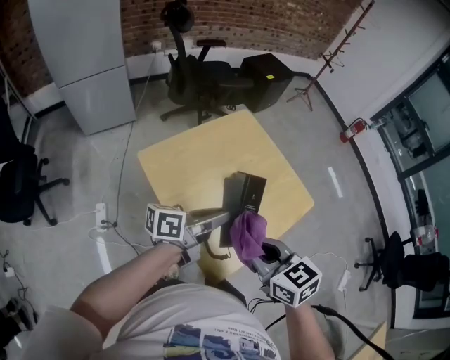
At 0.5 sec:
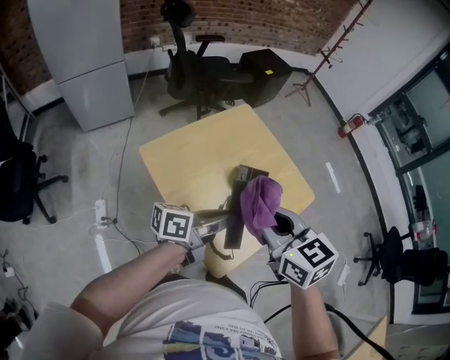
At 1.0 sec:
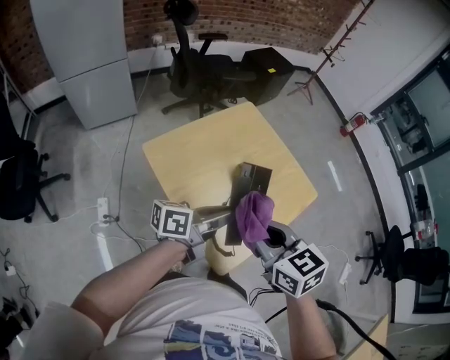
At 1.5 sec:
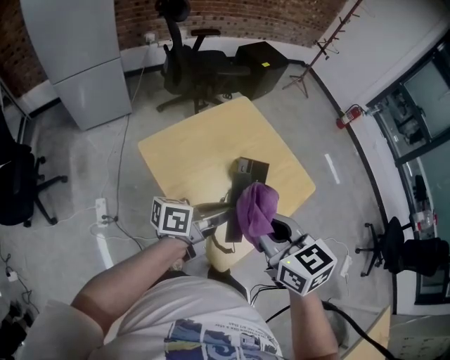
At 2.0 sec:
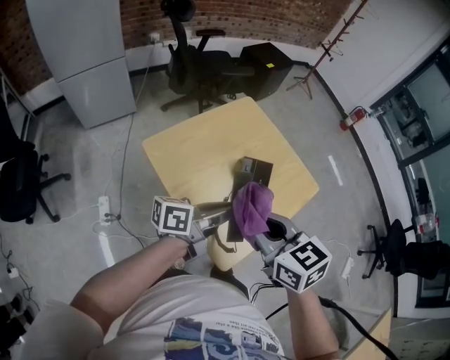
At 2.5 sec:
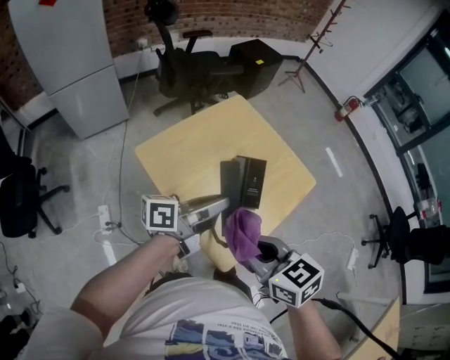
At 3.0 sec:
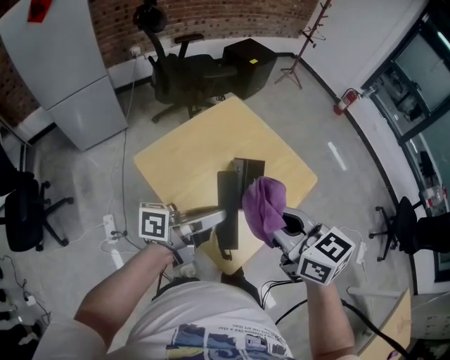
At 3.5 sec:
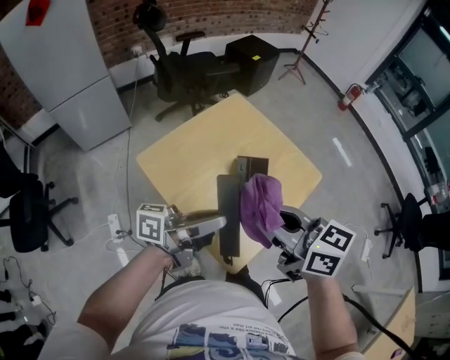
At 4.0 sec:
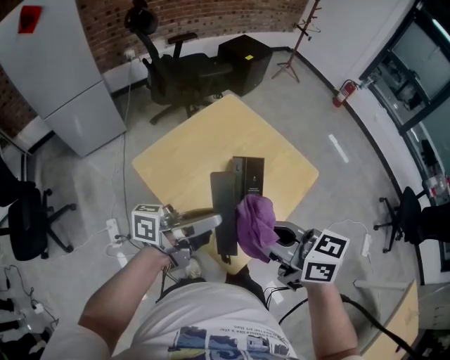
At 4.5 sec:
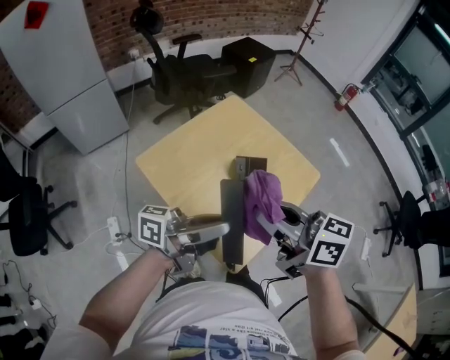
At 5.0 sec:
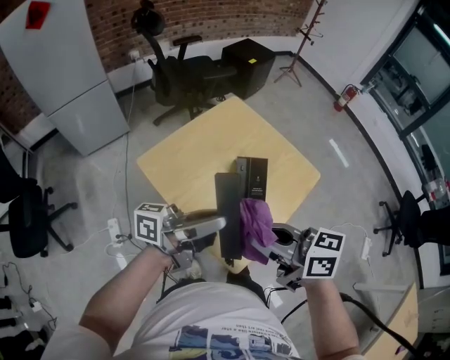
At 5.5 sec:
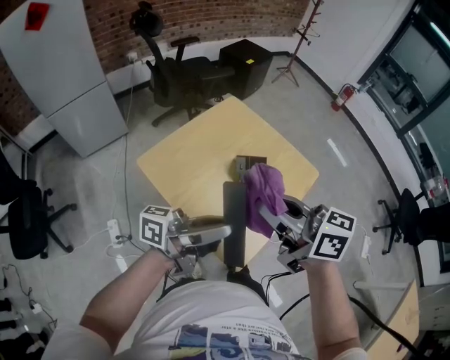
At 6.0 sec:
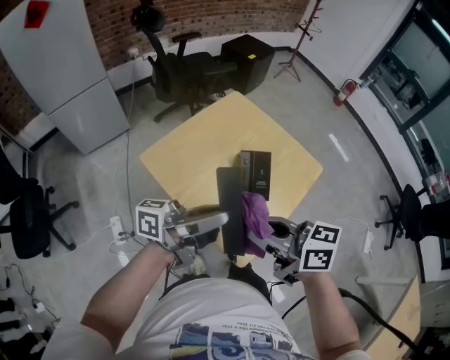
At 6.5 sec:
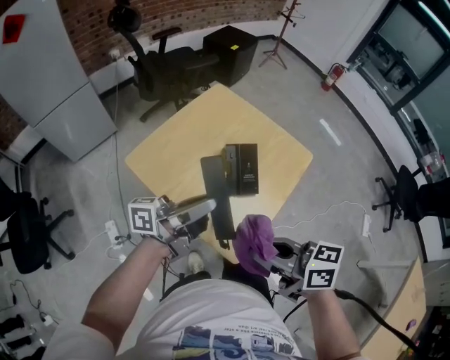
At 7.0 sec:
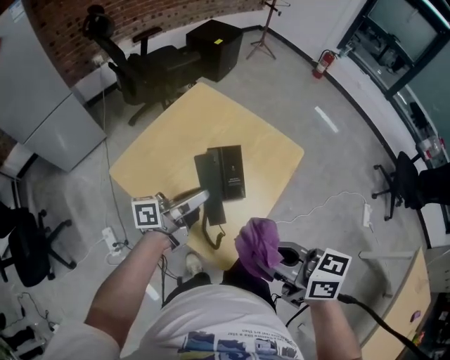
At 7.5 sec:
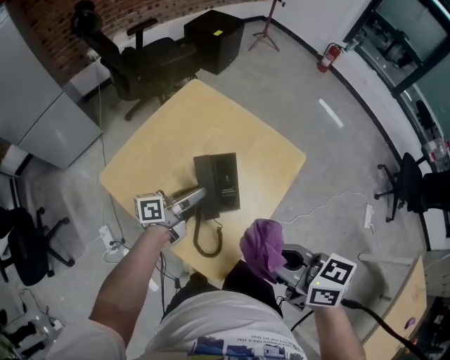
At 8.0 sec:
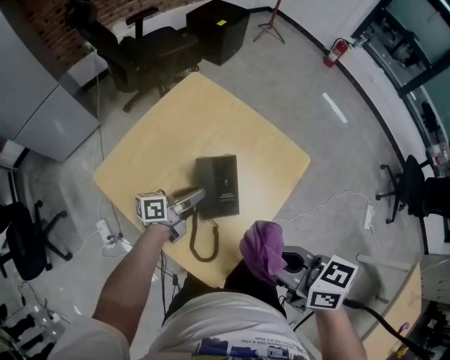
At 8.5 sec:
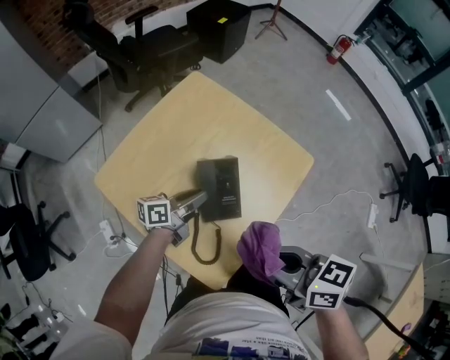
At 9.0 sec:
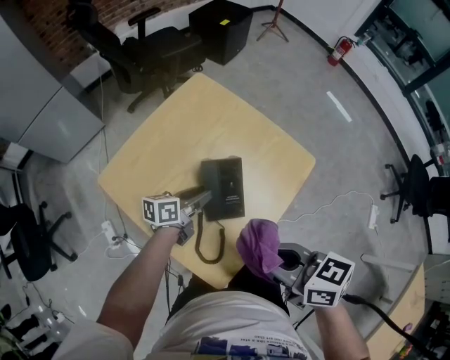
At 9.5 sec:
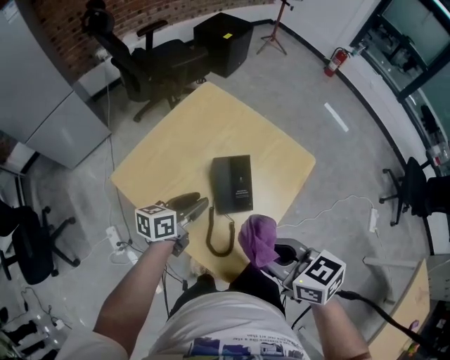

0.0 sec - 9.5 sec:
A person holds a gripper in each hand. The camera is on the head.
2.0 sec - 4.0 sec: The right gripper changes its angle by about 20 degrees. Meanwhile the left gripper travels upward by about 5 cm, and swivels about 20 degrees.
4.0 sec - 5.5 sec: The right gripper swings up and down, about 5 cm each way, with 2 reversals.
5.5 sec - 7.5 sec: The left gripper travels downward by approximately 20 cm, and changes its angle by about 30 degrees. The right gripper shifts by about 15 cm.
7.5 sec - 9.5 sec: The left gripper swivels approximately 20 degrees, while the right gripper changes place by about 5 cm.

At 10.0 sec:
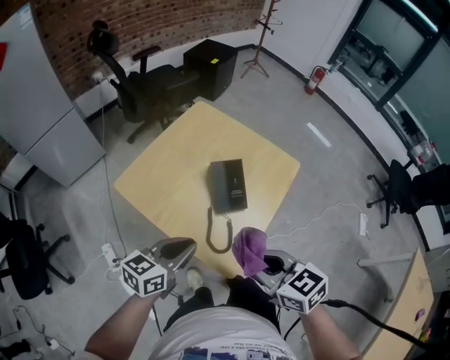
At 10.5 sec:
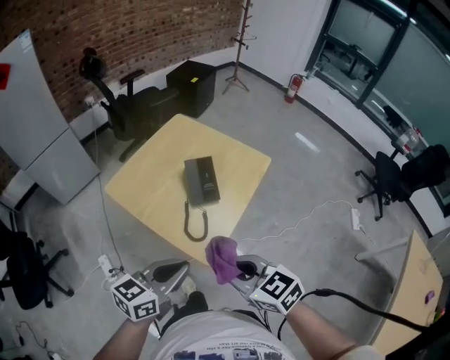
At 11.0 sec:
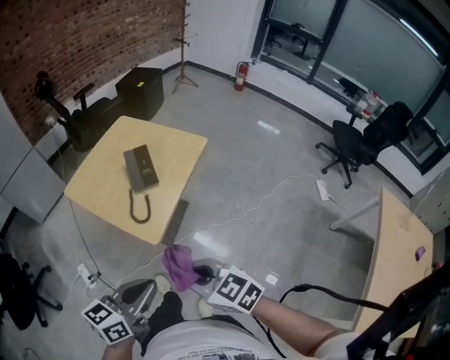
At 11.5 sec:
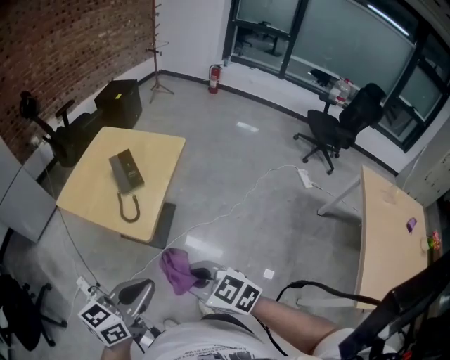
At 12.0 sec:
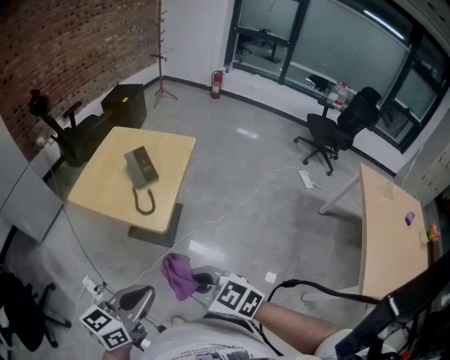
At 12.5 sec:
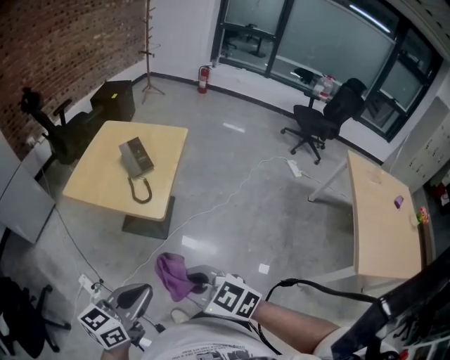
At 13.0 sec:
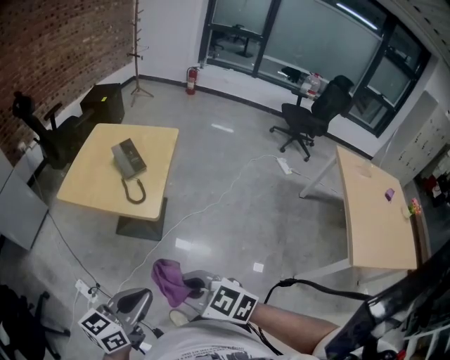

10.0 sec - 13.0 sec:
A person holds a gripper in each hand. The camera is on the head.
10.0 sec - 11.5 sec: The right gripper goes some 20 cm backward, while the left gripper is displaced backward and to the right by some 25 cm.
11.5 sec - 13.0 sec: Both grippers travel together to the left and backward, some 15 cm.

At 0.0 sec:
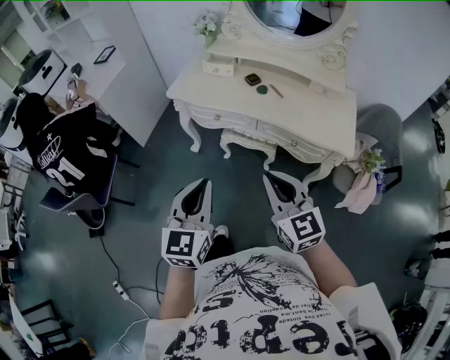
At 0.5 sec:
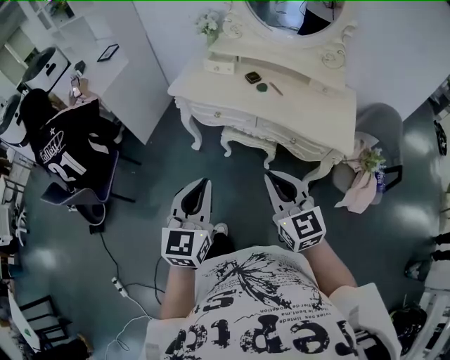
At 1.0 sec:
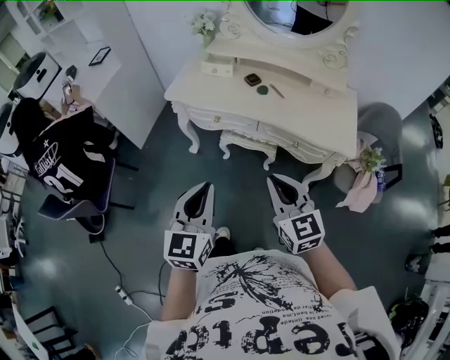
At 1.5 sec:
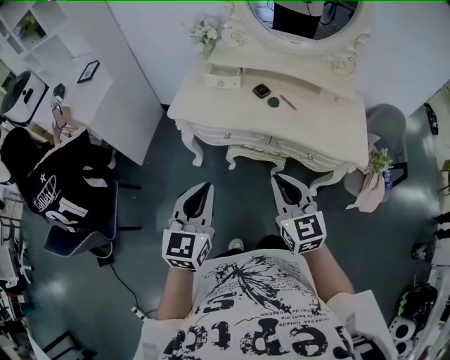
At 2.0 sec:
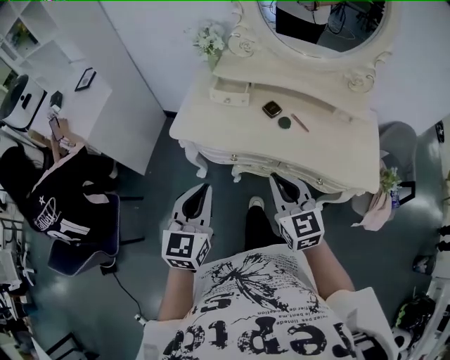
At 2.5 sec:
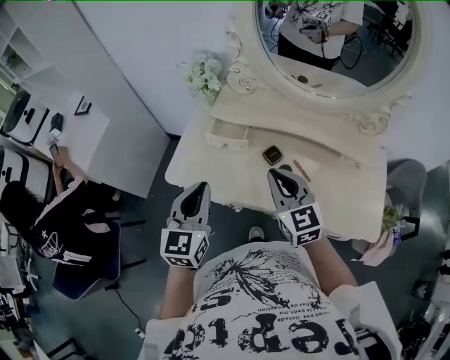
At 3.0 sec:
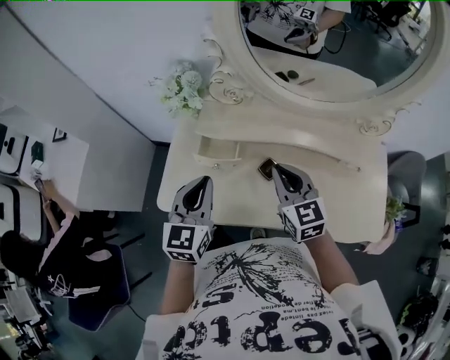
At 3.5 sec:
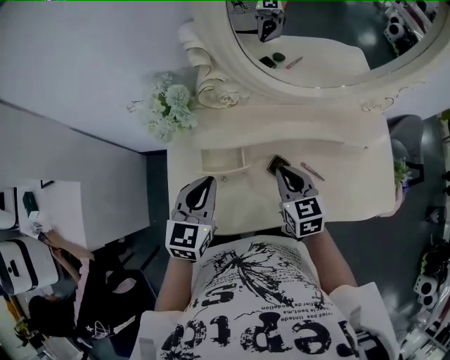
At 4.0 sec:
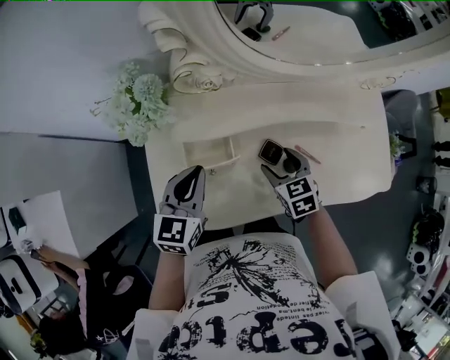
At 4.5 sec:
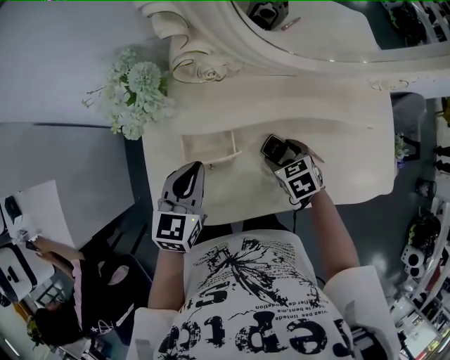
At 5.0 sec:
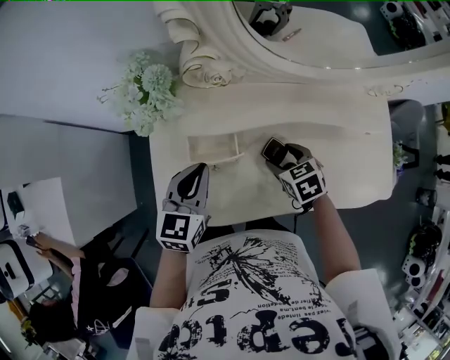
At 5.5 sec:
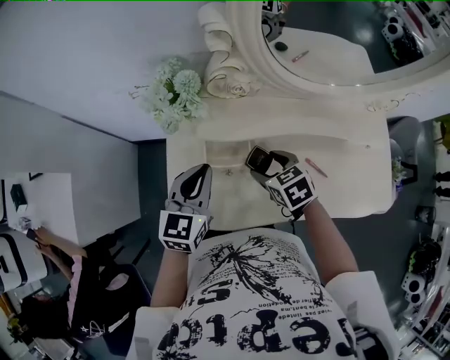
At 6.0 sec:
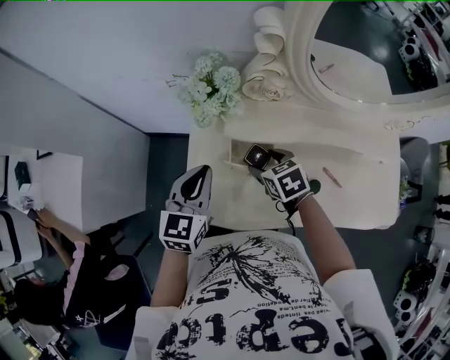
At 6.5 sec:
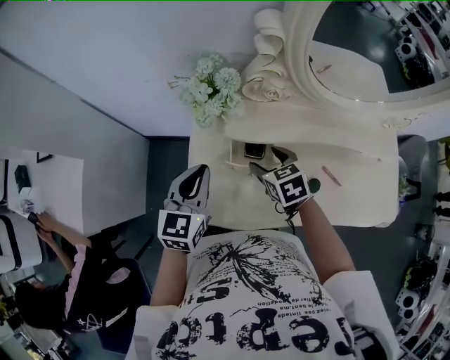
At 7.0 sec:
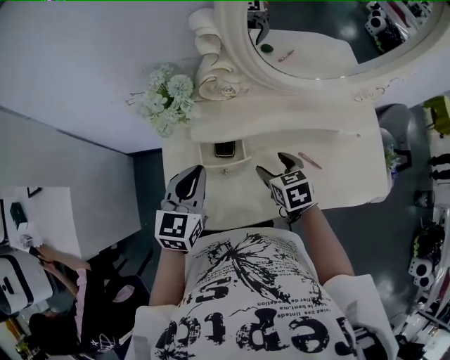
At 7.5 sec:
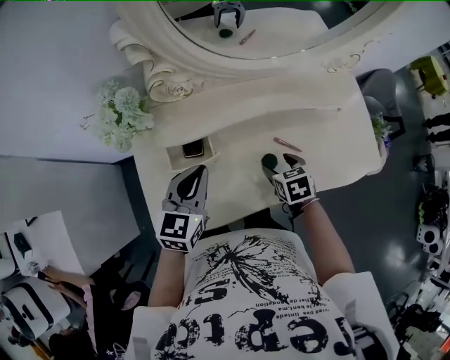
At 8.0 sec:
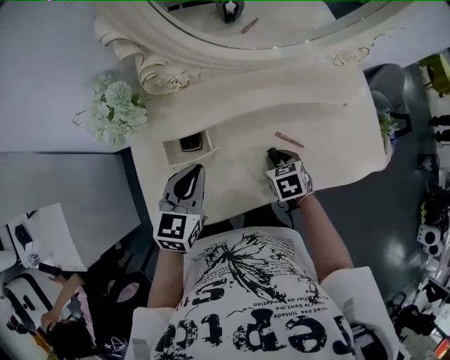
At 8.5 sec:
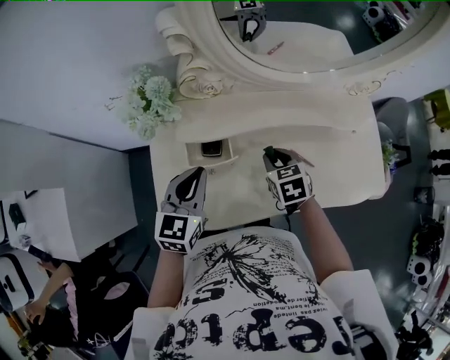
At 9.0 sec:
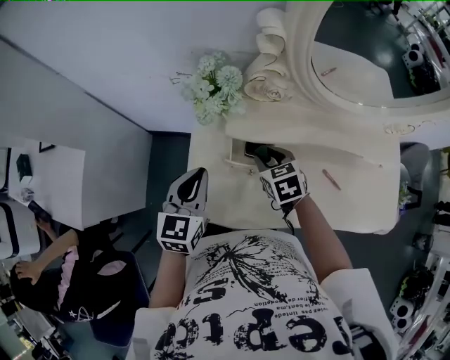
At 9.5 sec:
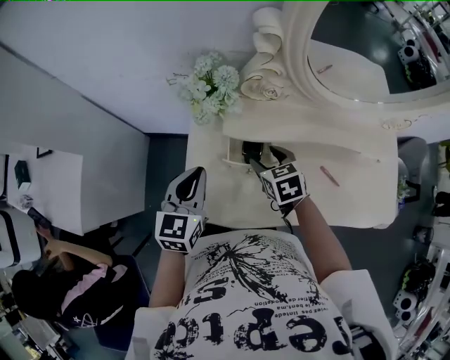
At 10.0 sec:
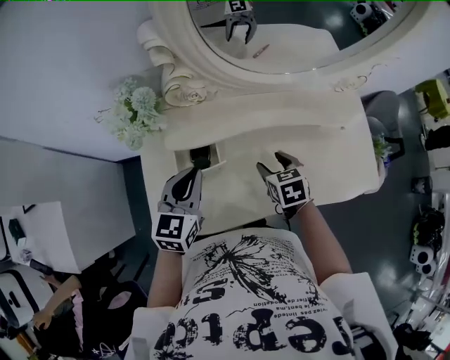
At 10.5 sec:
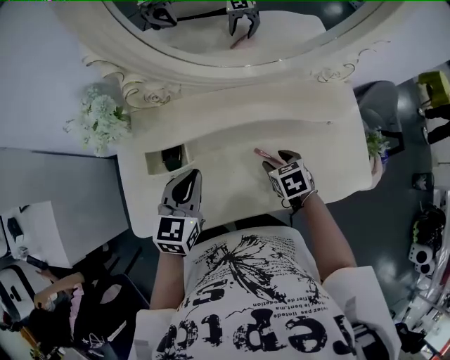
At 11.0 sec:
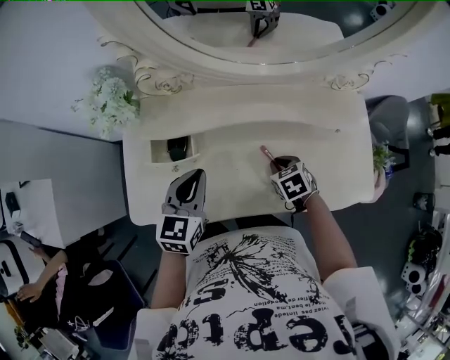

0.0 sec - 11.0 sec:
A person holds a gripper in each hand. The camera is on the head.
0.0 sec - 2.0 sec: The grippers both shift forward by approximately 25 cm.
2.0 sec - 3.5 sec: Both grippers move forward, about 35 cm. The left gripper changes its angle by roughly 20 degrees. Meanwhile the right gripper changes its angle by about 30 degrees.
3.5 sec - 5.5 sec: The right gripper heads to the left, covering about 5 cm, goes downward and returns, some 15 cm each way, swivels about 30 degrees, and opens its fingers.
5.5 sec - 7.5 sec: The left gripper changes place by about 10 cm. The right gripper changes place by roughly 15 cm, and rotates approximately 30 degrees.
7.5 sec - 9.0 sec: The two grippers go about 20 cm to the left. The left gripper turns by about 20 degrees, while the right gripper swivels about 30 degrees, and closes.
9.0 sec - 11.0 sec: Both grippers travel together to the right, approximately 25 cm. The right gripper opens, then closes again.

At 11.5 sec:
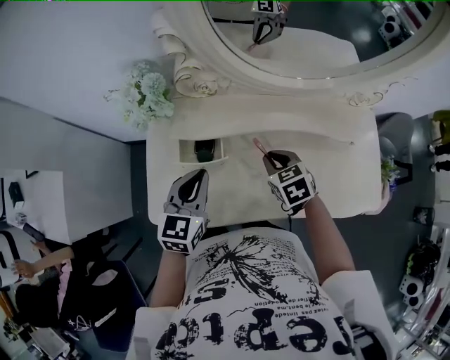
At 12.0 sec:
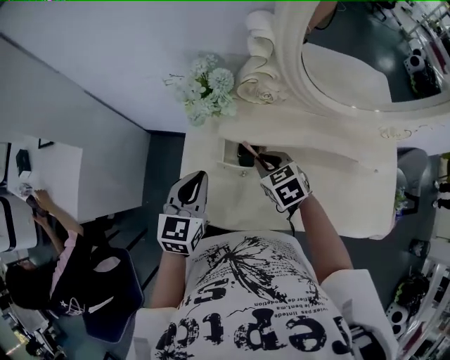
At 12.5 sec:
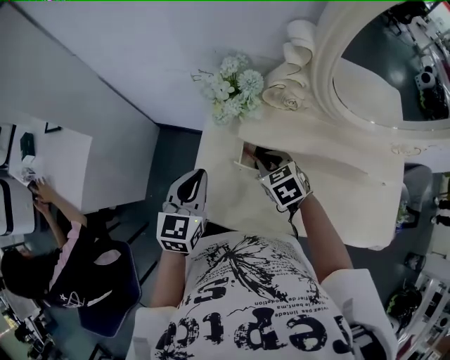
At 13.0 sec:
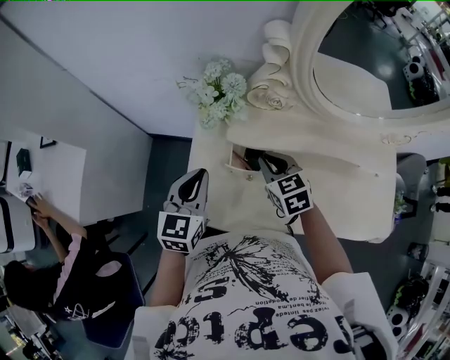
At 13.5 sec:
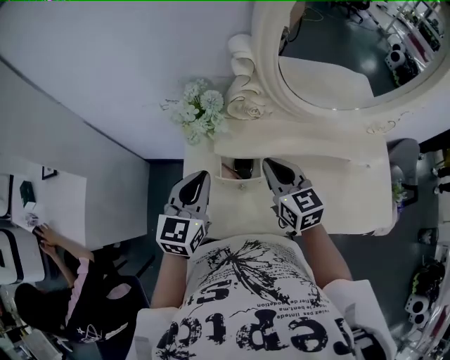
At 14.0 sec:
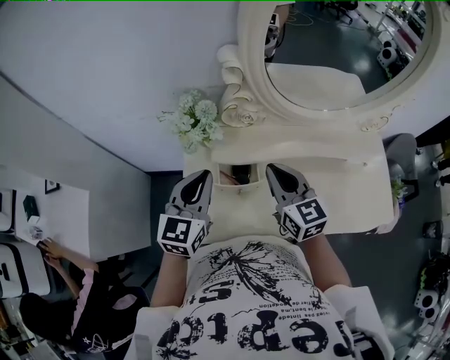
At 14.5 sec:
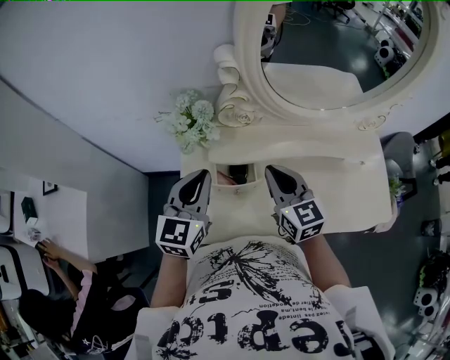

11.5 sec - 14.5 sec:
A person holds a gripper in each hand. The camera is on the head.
11.5 sec - 13.0 sec: Both grippers travel together to the left, approximately 15 cm.
13.0 sec - 14.5 sec: Both grippers travel together upward and to the right, roughly 10 cm. The right gripper changes its angle by approximately 30 degrees.
